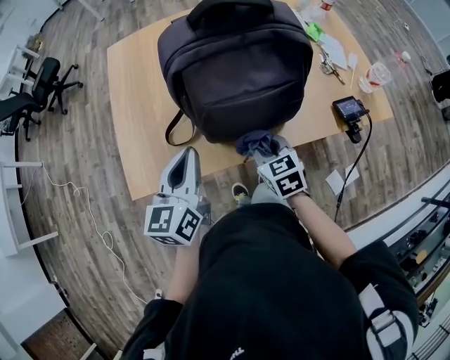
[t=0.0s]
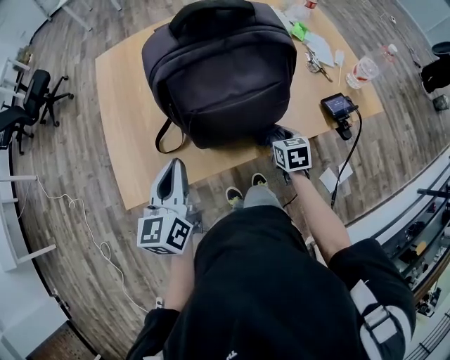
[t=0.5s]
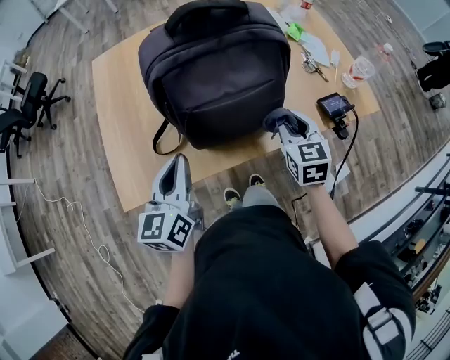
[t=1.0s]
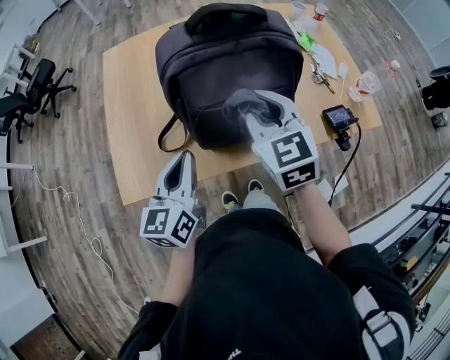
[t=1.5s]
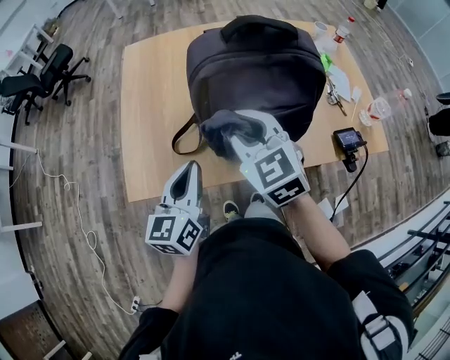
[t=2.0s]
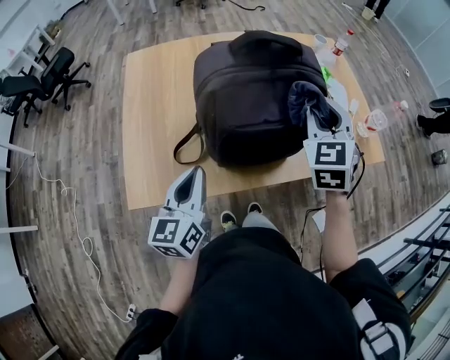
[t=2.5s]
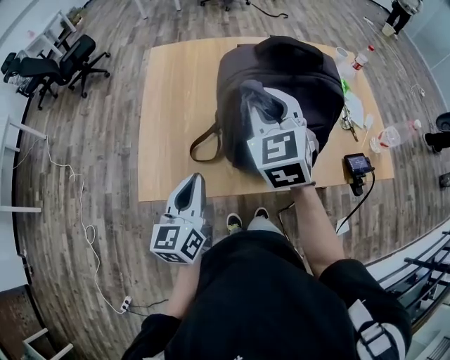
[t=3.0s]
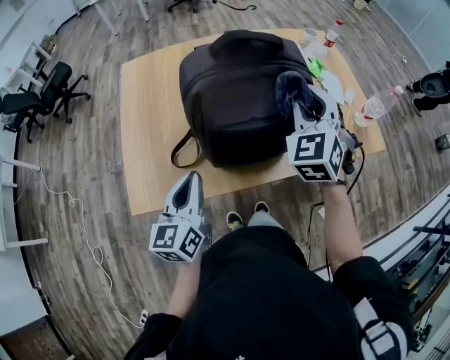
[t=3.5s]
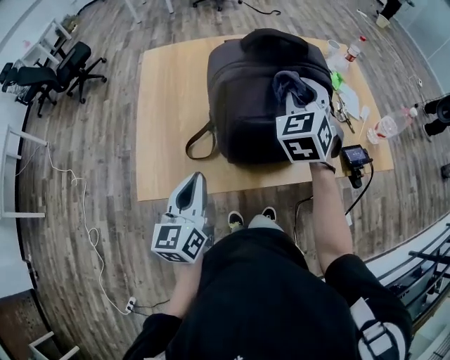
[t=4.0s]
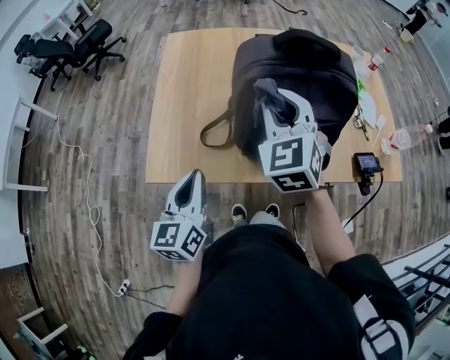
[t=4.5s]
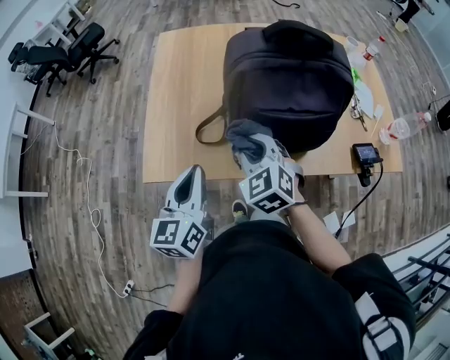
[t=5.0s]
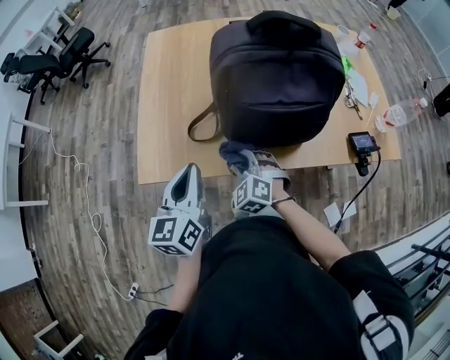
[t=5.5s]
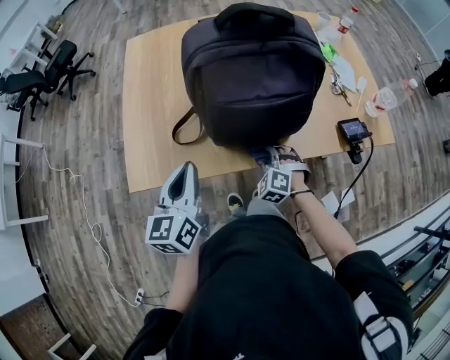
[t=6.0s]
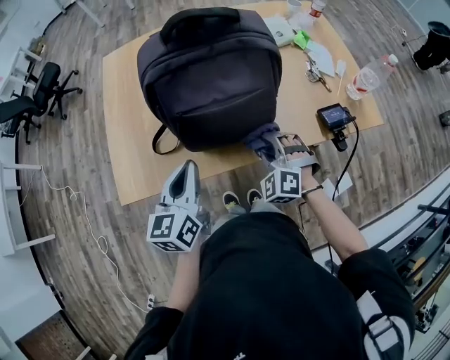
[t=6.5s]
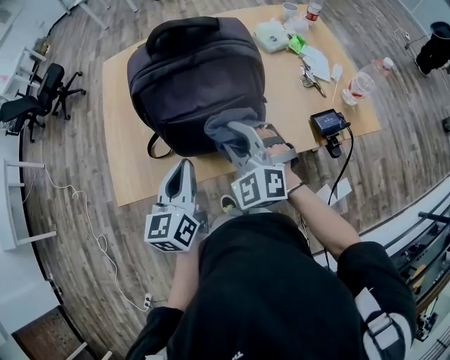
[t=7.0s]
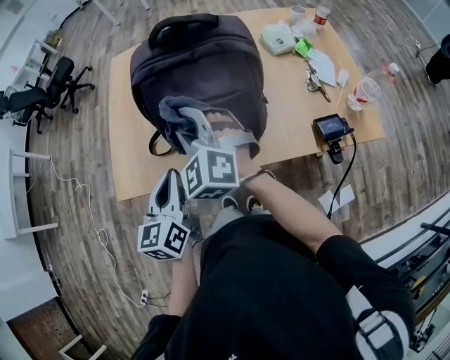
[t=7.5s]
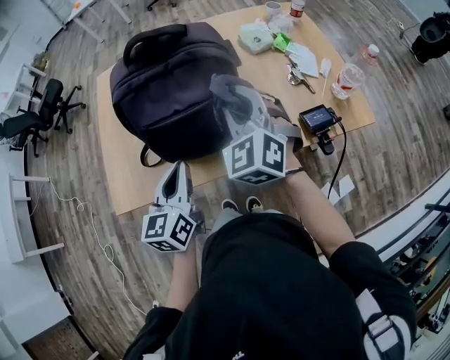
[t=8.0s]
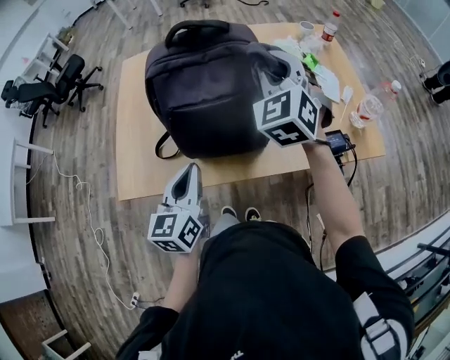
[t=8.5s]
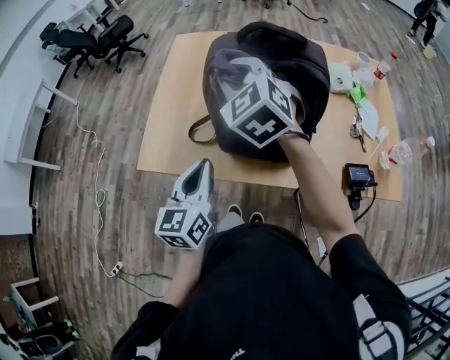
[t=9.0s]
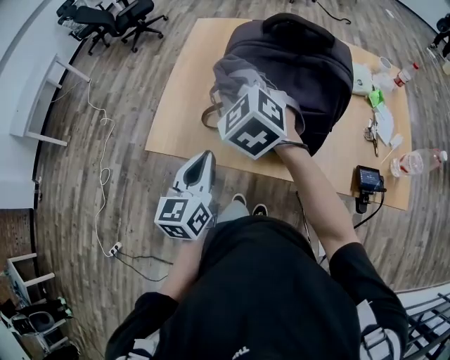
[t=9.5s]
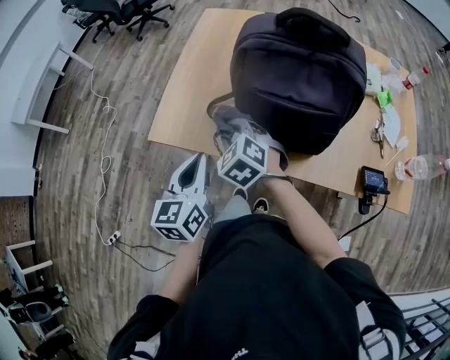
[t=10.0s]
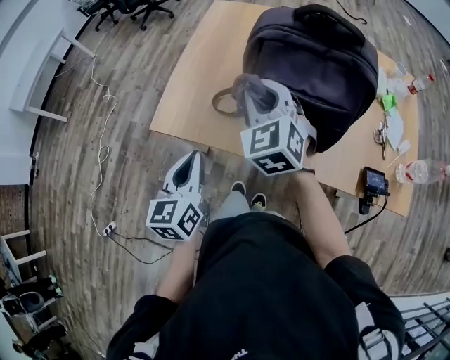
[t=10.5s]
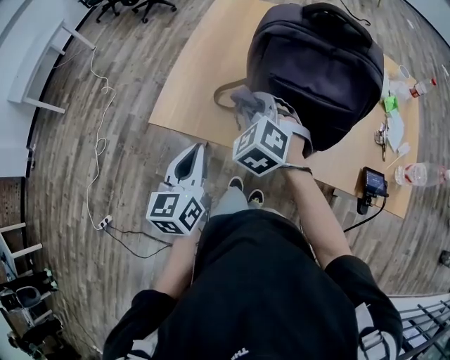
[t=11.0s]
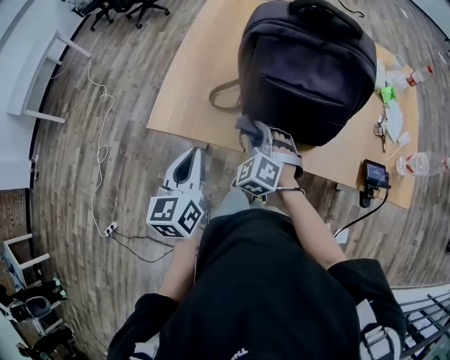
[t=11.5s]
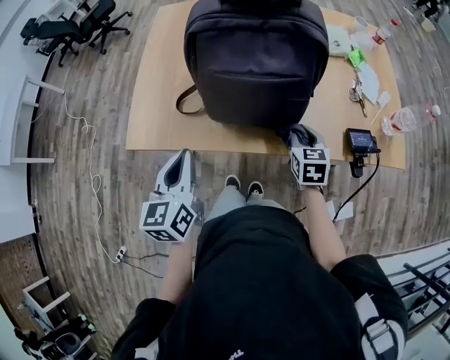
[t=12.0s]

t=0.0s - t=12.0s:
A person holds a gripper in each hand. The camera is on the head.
t=0.0s - t=2.0s: The right gripper shifts about 20 cm upward and to the left, and changes its angle by about 30 degrees.
t=2.0s - t=4.0s: The right gripper goes left and right, some 20 cm each way, reversing 3 times, and rotates approximately 30 degrees.
t=4.0s - t=6.0s: The right gripper shifts approximately 35 cm downward and backward, and swivels about 40 degrees.
t=6.0s - t=8.0s: The right gripper shifts roughly 30 cm upward, and angles its fingers upward, by approximately 30 degrees, while the left gripper goes roughly 15 cm to the right.
t=8.0s - t=10.0s: The right gripper changes place by approximately 30 cm, and changes its angle by approximately 50 degrees. Meanwhile the left gripper shifts by some 15 cm, and rotates about 30 degrees.
t=10.0s - t=12.0s: The right gripper moves to the right, roughly 30 cm, and rolls clockwise, seen from behind, by approximately 40 degrees.

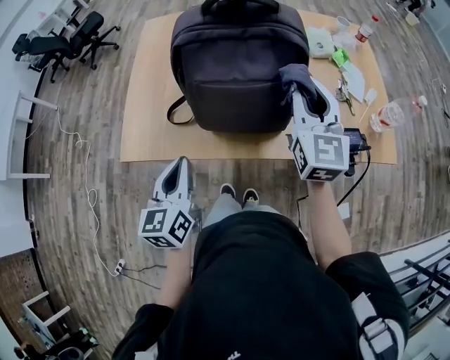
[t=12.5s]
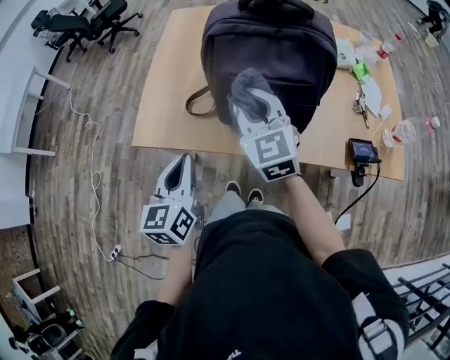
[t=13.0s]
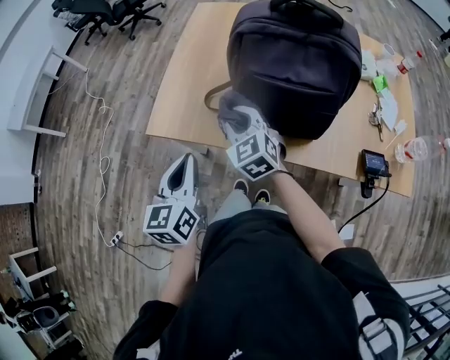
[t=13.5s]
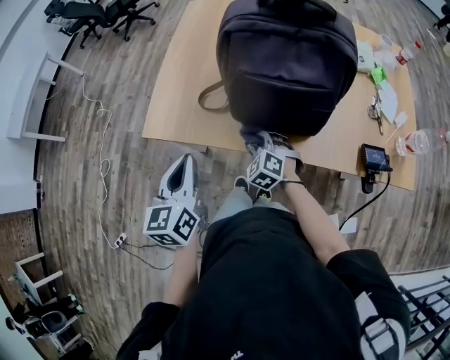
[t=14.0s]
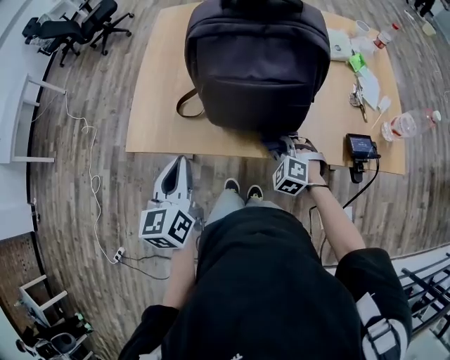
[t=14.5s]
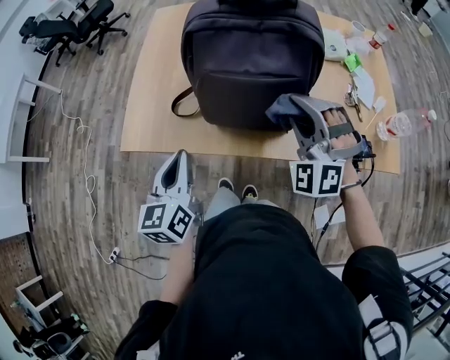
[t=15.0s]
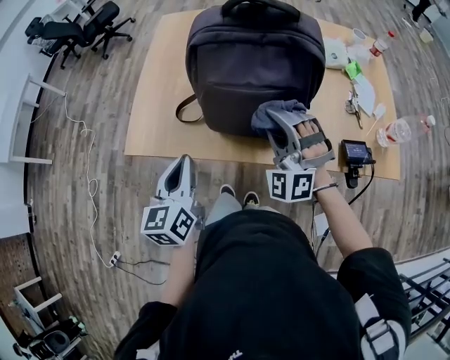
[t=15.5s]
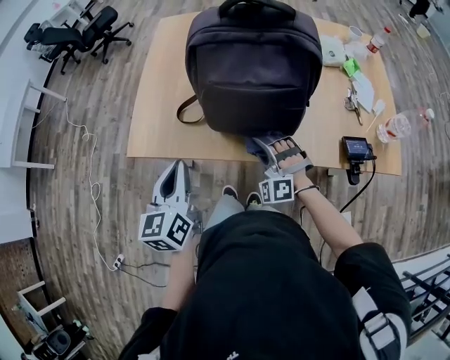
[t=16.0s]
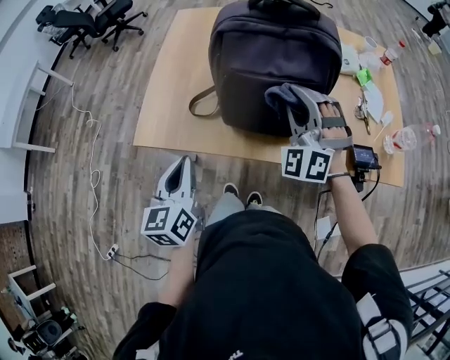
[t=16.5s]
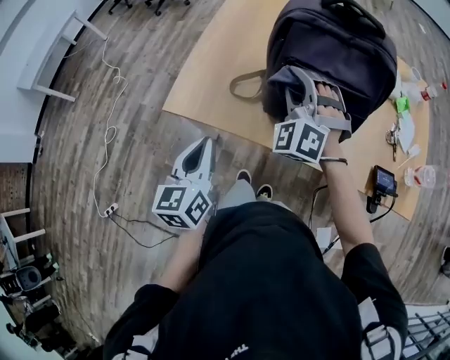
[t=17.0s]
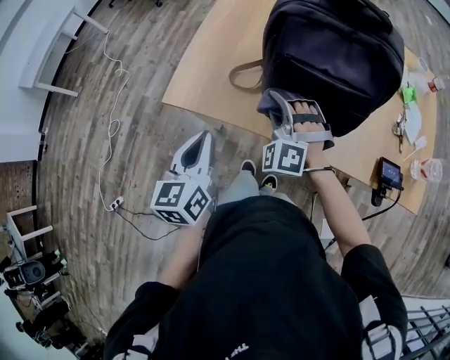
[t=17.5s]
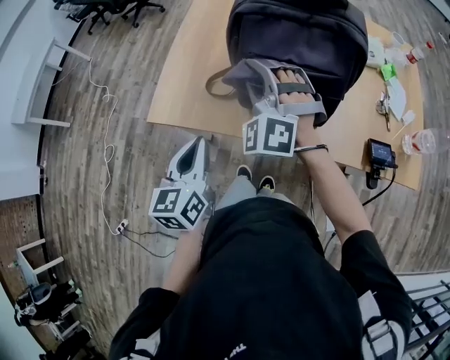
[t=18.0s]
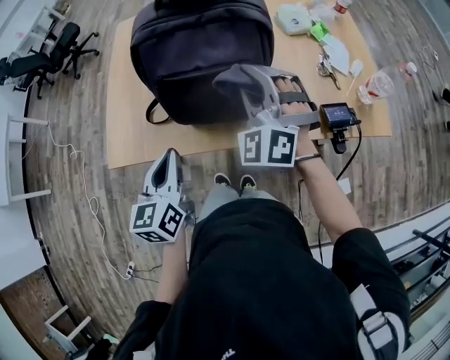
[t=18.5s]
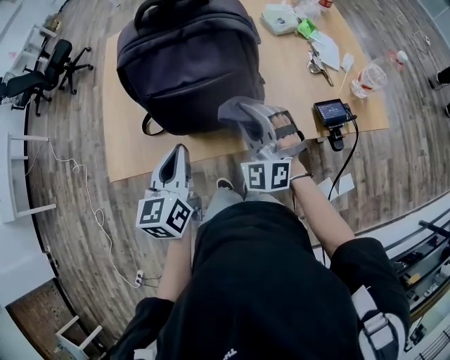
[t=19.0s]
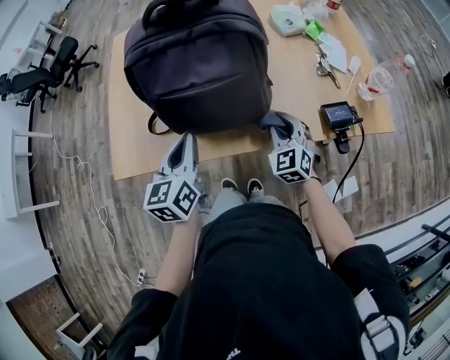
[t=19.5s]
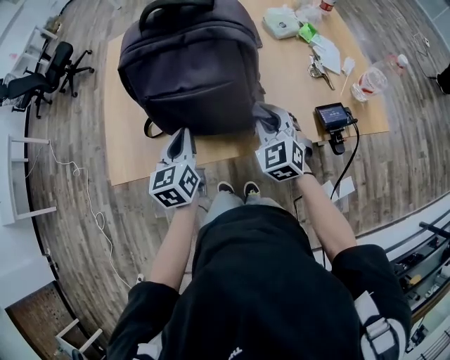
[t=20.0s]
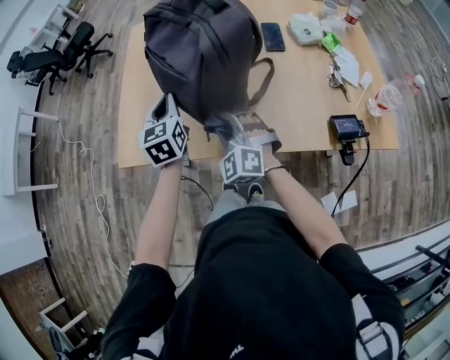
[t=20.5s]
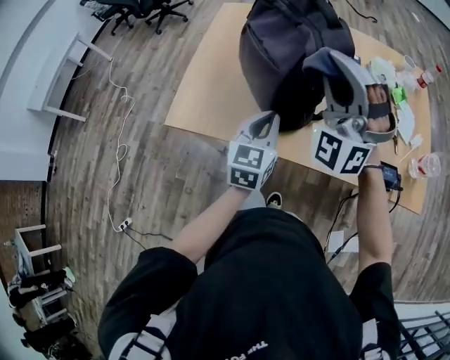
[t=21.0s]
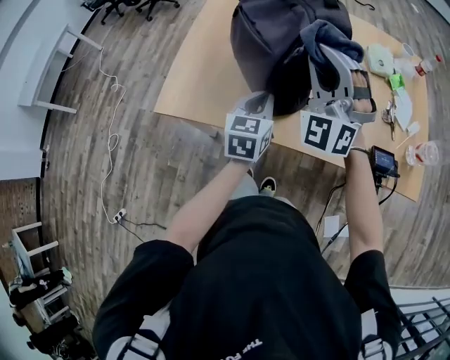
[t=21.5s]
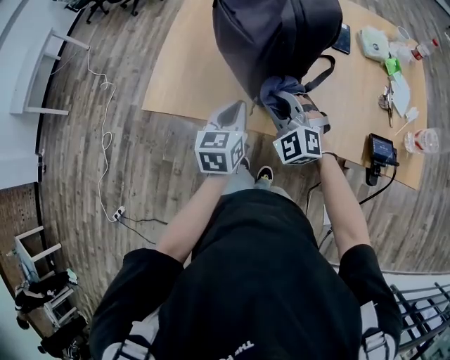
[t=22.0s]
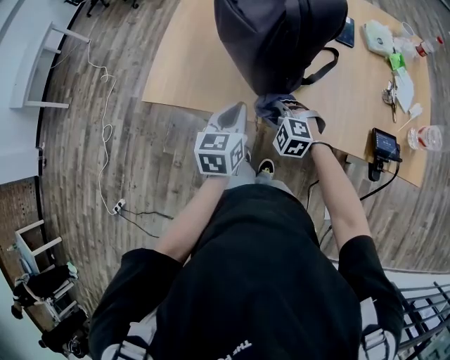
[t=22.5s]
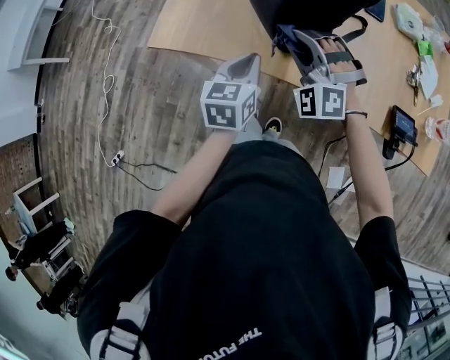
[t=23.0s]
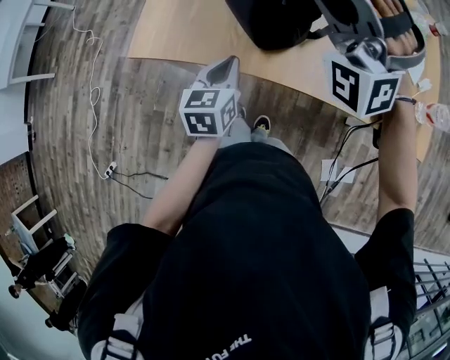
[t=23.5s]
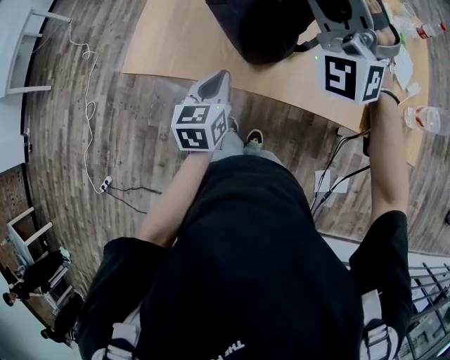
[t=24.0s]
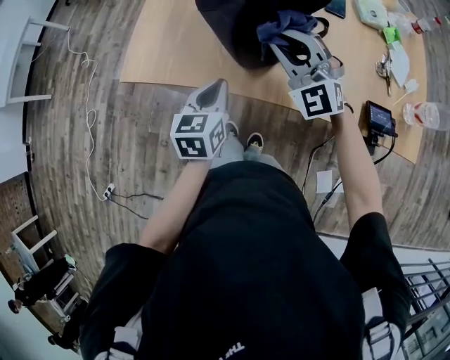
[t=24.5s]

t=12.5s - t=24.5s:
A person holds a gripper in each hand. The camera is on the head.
t=12.5s - t=14.5s: The right gripper is displaced downward by roughly 30 cm, and points its fingers about 50 degrees further downward.
t=14.5s - t=16.5s: The right gripper goes up and down, approximately 25 cm each way, reversing 2 times, and tilts its fingers roughly 40 degrees upward.
t=16.5s - t=18.5s: The right gripper goes to the left and returns, about 15 cm each way. The left gripper shifts approximately 10 cm to the right.
t=18.5s - t=20.5s: The left gripper heads forward, covering about 20 cm. Meanwhile the right gripper goes about 15 cm downward and to the left, and turns by some 20 degrees.
t=20.5s - t=22.5s: The left gripper travels backward and downward by about 15 cm. The right gripper heads downward, covering roughly 15 cm, and rotates roughly 40 degrees.
t=22.5s - t=24.5s: The right gripper is displaced upward by about 20 cm, and points its fingers about 40 degrees further upward.

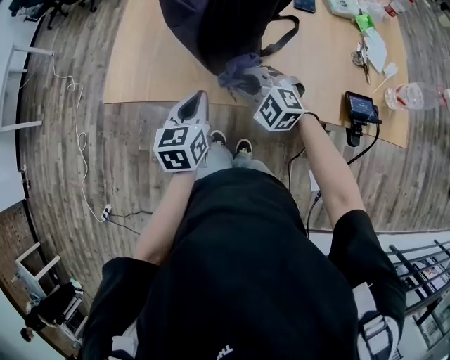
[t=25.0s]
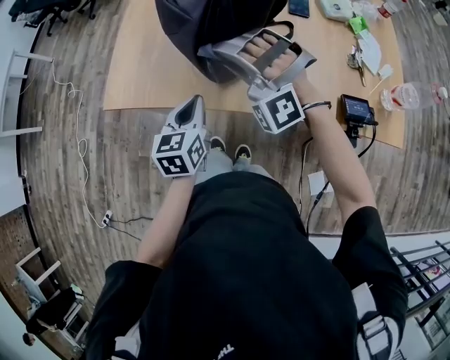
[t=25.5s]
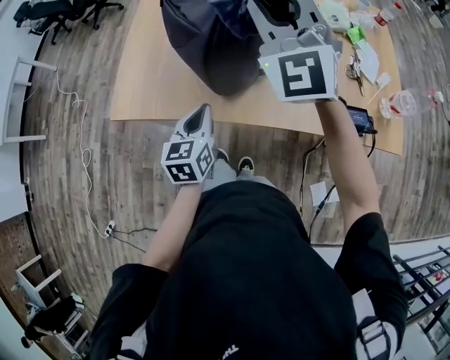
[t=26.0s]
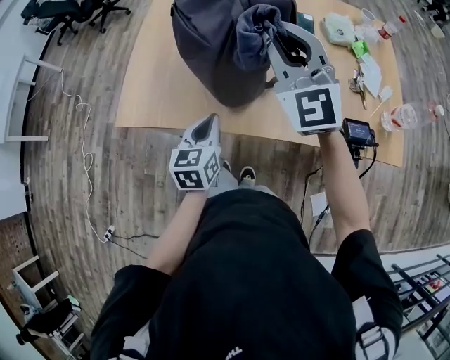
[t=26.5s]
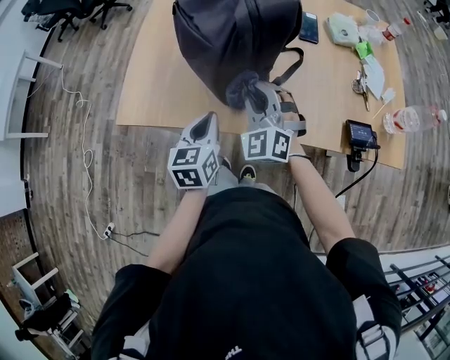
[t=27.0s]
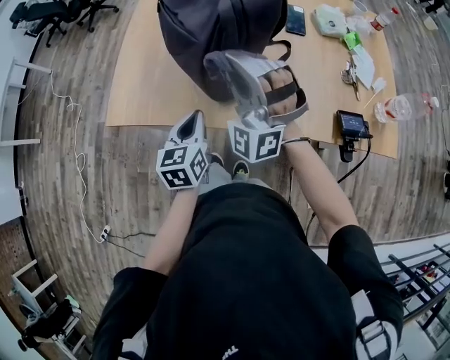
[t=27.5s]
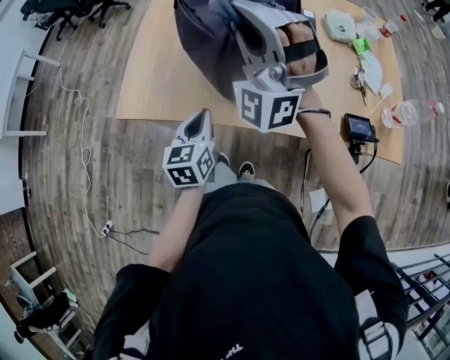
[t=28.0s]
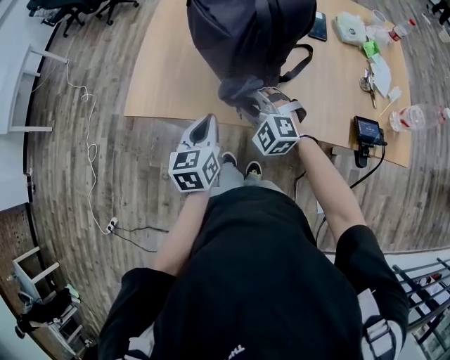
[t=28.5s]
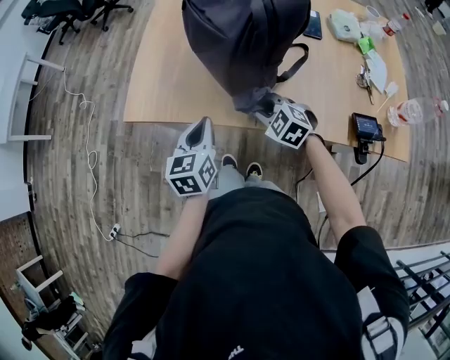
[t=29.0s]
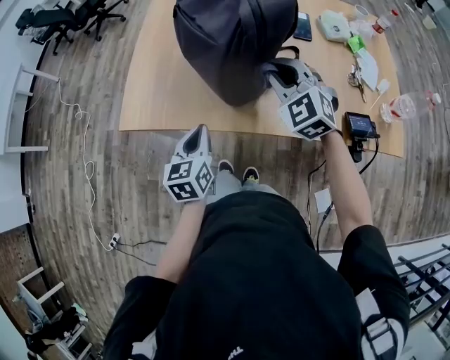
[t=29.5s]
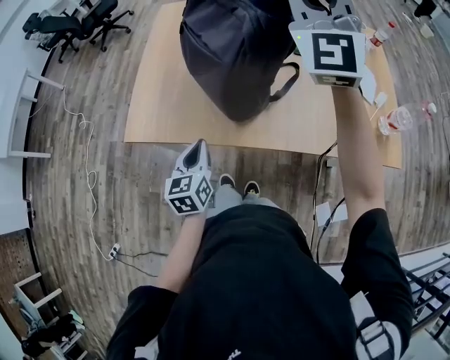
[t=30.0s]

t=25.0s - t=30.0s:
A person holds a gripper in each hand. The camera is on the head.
t=25.0s - t=27.5s: The right gripper goes up and down, some 35 cm each way, reversing 2 times, and tips its fingers upward by approximately 40 degrees.
t=27.5s - t=30.0s: The right gripper swings up and down, some 40 cm each way, with 2 reversals, and turns by some 30 degrees; the left gripper travels to the left by roughly 5 cm.
